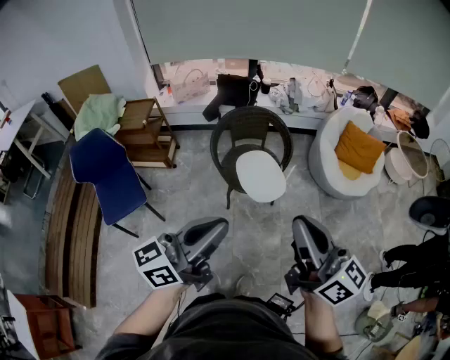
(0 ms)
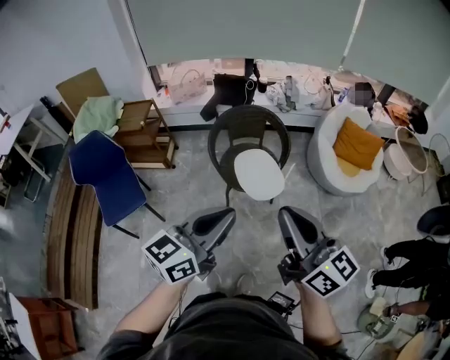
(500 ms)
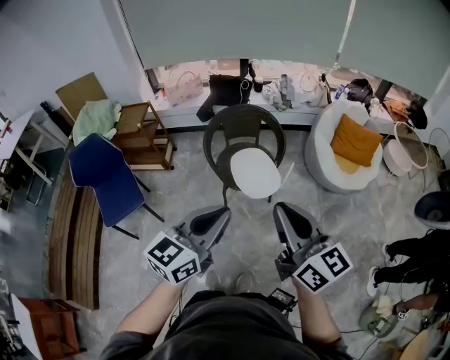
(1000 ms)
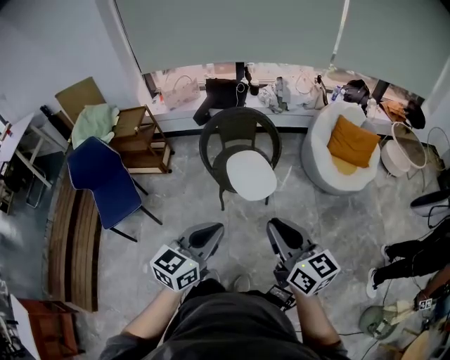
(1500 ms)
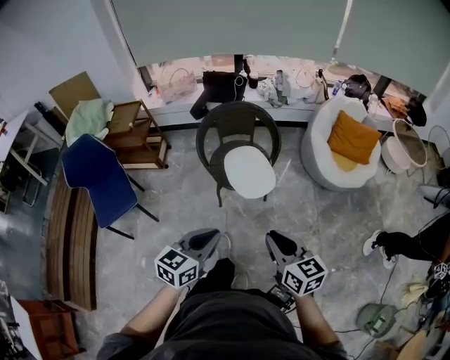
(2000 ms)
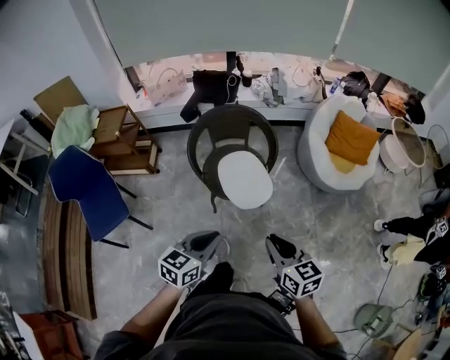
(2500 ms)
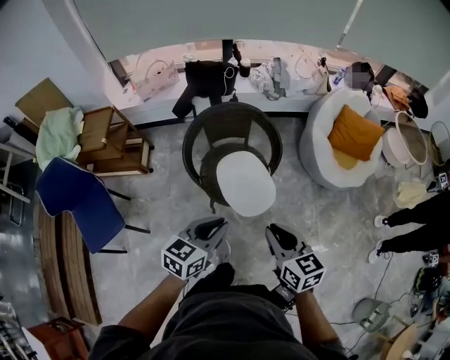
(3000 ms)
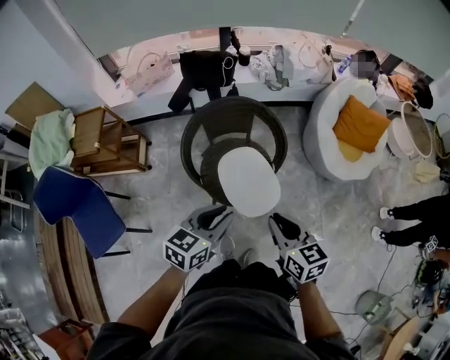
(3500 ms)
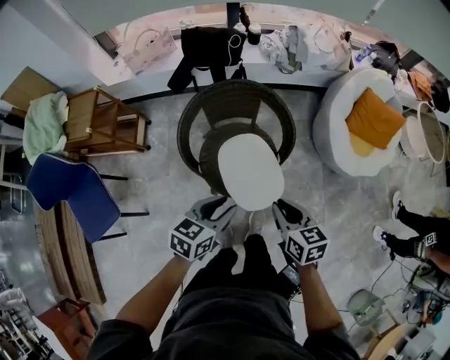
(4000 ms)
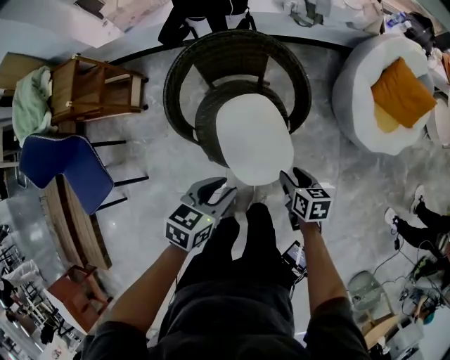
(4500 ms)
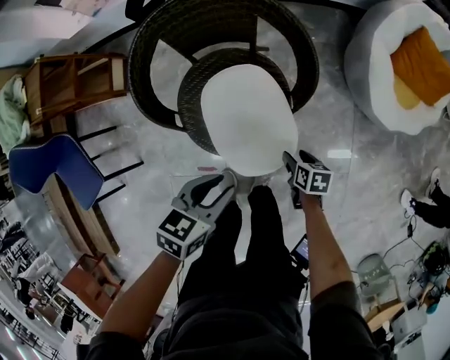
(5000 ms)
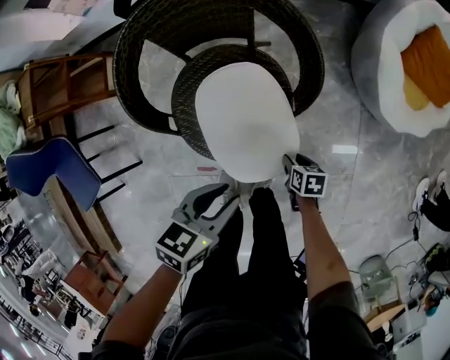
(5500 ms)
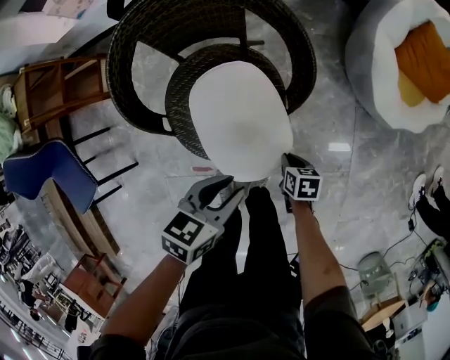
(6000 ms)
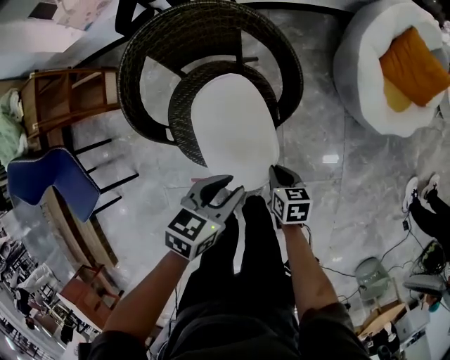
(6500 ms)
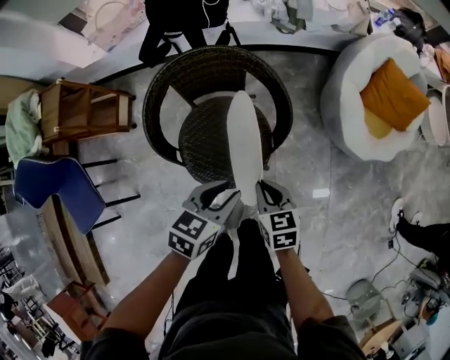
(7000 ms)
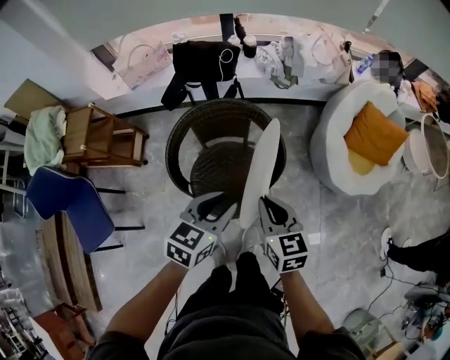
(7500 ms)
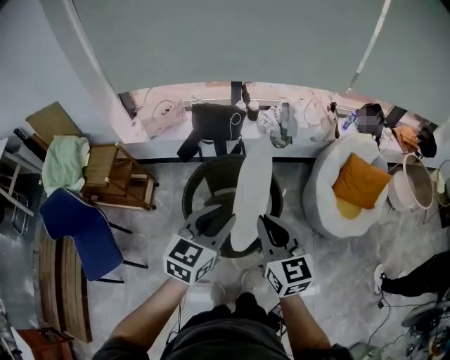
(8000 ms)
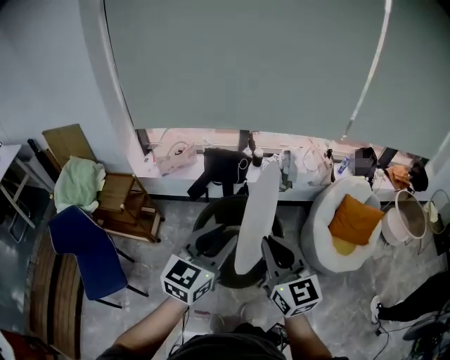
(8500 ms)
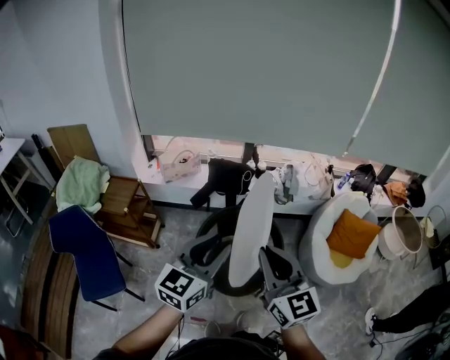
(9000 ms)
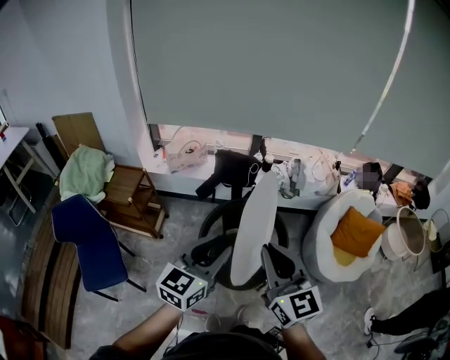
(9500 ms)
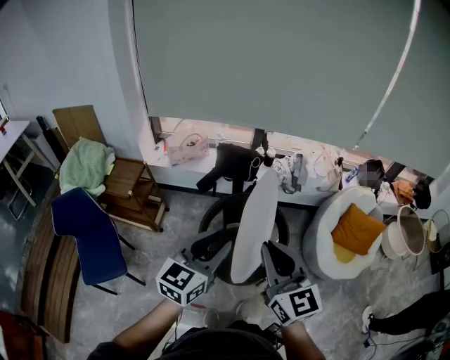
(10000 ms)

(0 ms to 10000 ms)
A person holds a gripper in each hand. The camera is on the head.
0 ms - 2000 ms: Both grippers travel together downward, roughly 20 cm. The right gripper tips its fingers downward by roughly 30 degrees. The left gripper points its fingers approximately 30 degrees further downward.
2000 ms - 4000 ms: The right gripper moves forward and downward, roughly 40 cm. Meanwhile the left gripper heads forward, covering approximately 35 cm, and opens up.
4000 ms - 6000 ms: The left gripper goes approximately 25 cm downward and to the right. The right gripper shifts some 40 cm downward, changes its angle by some 30 degrees, and opens, then closes once more.
6000 ms - 8000 ms: The right gripper shifts some 70 cm upward, and points its fingers about 50 degrees further upward, while the left gripper travels upward by approximately 40 cm, and turns by approximately 40 degrees.
8000 ms - 10000 ms: The right gripper is displaced upward, to the left and backward by about 15 cm; the left gripper travels to the left, upward and backward by roughly 15 cm.

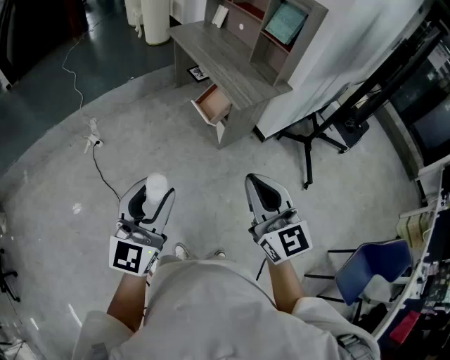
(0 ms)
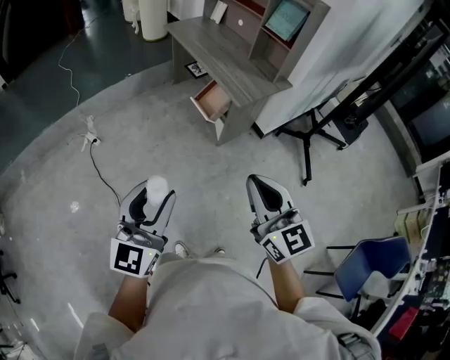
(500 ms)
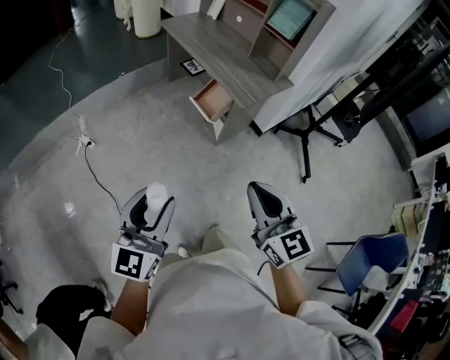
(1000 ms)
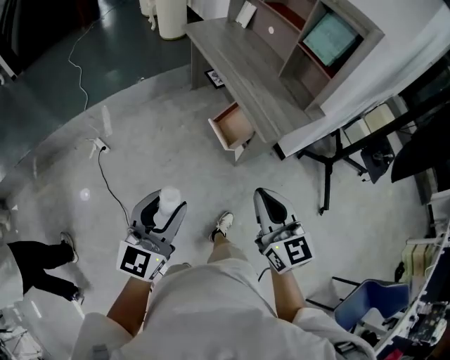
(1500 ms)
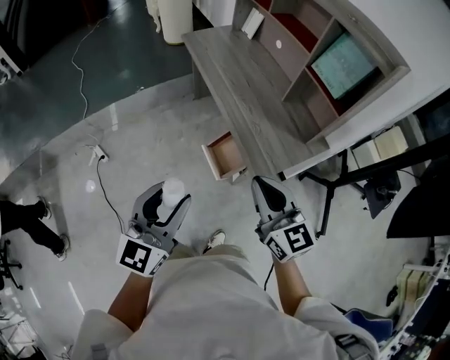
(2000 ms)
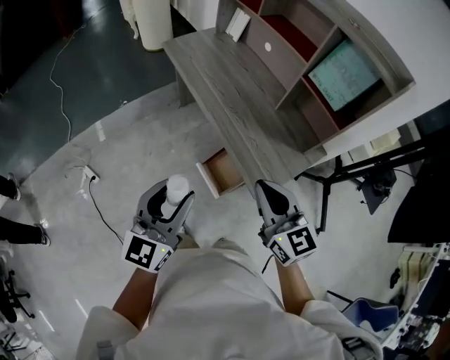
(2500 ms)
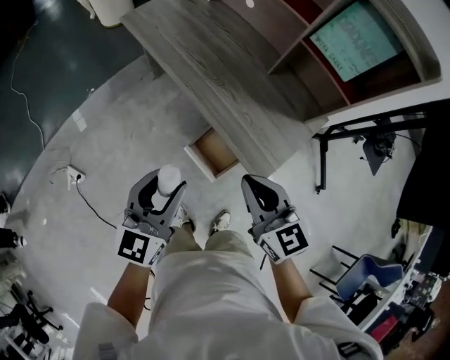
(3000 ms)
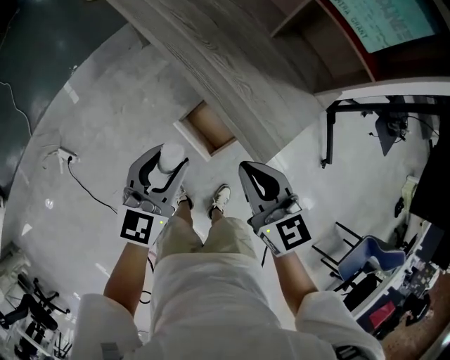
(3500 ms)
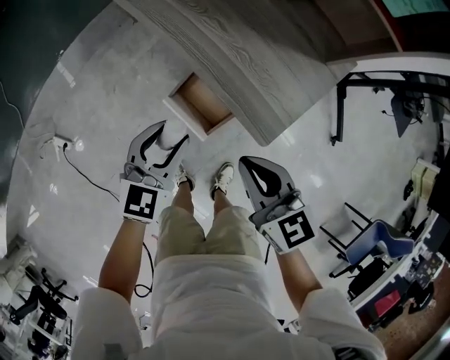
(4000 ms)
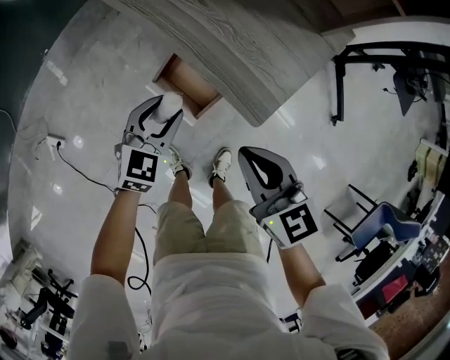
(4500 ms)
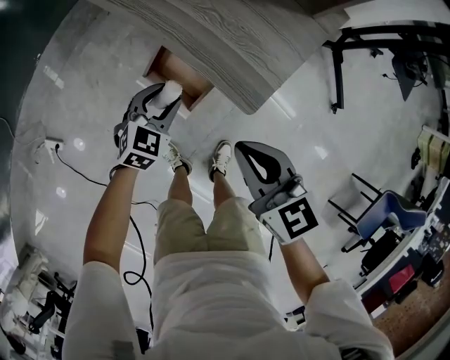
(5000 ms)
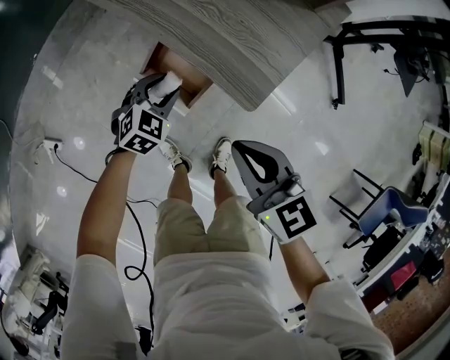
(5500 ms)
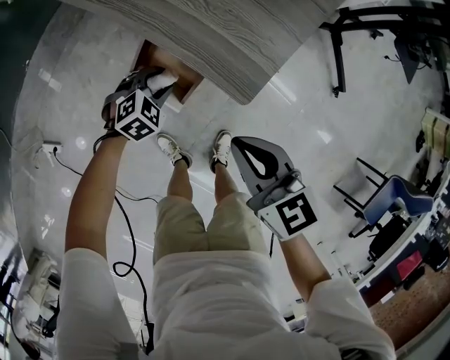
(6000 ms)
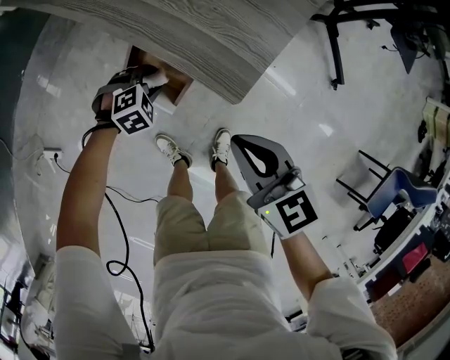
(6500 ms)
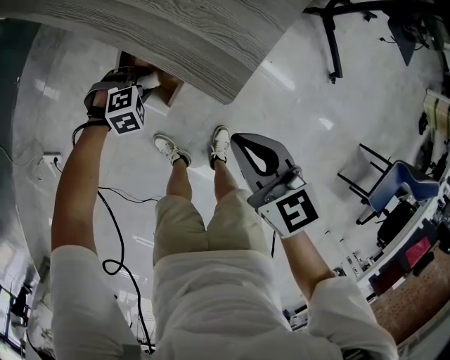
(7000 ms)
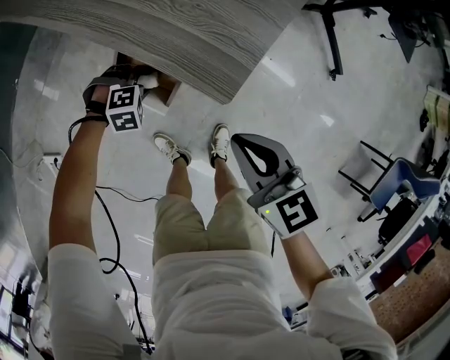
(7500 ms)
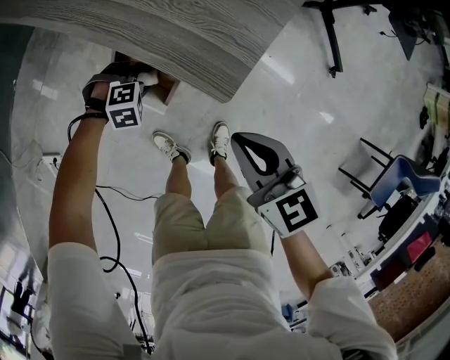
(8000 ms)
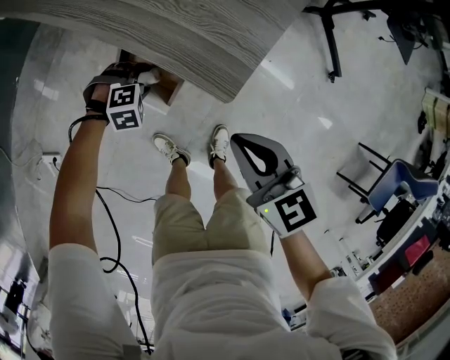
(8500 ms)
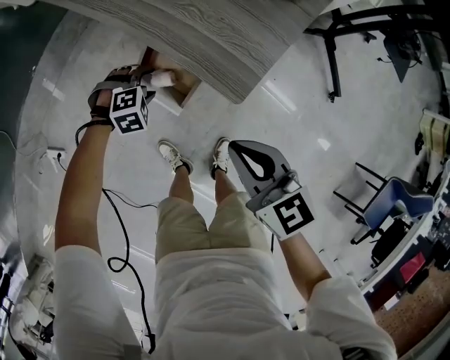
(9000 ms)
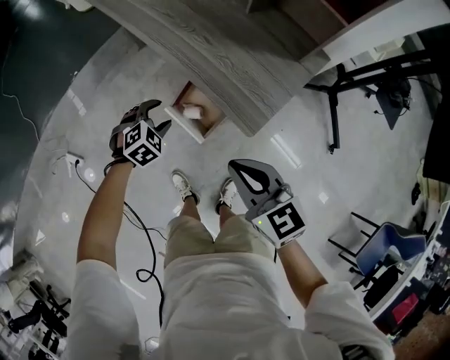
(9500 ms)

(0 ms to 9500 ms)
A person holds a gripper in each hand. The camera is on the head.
0 ms - 2000 ms: The two grippers travel together, forward, approximately 40 cm.
2000 ms - 4000 ms: The two grippers go approximately 30 cm downward and forward. The right gripper turns by roughly 30 degrees; the left gripper swivels about 30 degrees.
4000 ms - 5500 ms: The right gripper moves downward, roughly 5 cm; the left gripper moves downward, about 20 cm, and swivels some 30 degrees.
5500 ms - 7500 ms: The right gripper ends up roughly 5 cm from where it was, while the left gripper moves downward, some 10 cm, and rolls clockwise, seen from behind, by about 40 degrees.
7500 ms - 9500 ms: The two grippers go approximately 15 cm upward. The left gripper changes its angle by some 50 degrees. Meanwhile the right gripper swivels approximately 20 degrees.

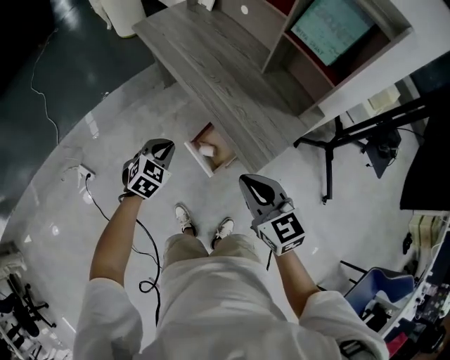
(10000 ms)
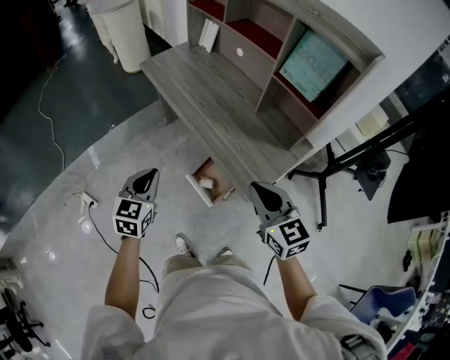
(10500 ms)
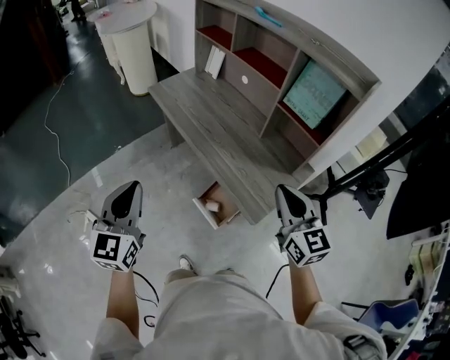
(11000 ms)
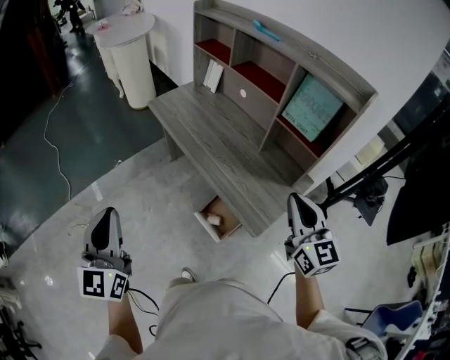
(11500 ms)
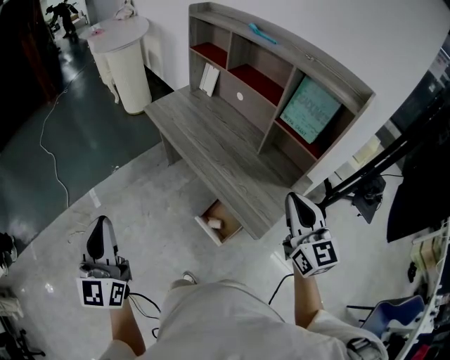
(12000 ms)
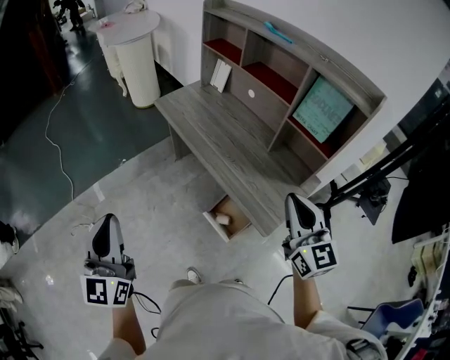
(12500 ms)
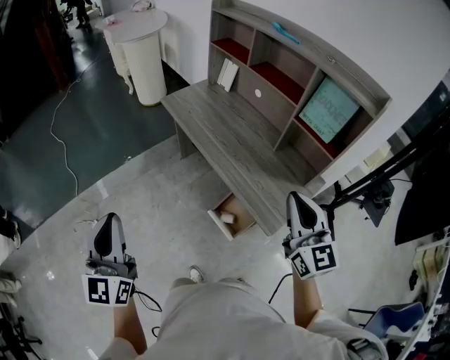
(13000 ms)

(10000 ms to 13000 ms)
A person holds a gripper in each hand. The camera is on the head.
10000 ms - 11500 ms: The right gripper shifts roughly 20 cm upward and to the right, and swivels some 30 degrees, while the left gripper shifts roughly 40 cm upward and to the left, and tips its fingers upward by approximately 50 degrees.
11500 ms - 13000 ms: The two grippers go roughly 5 cm to the left.

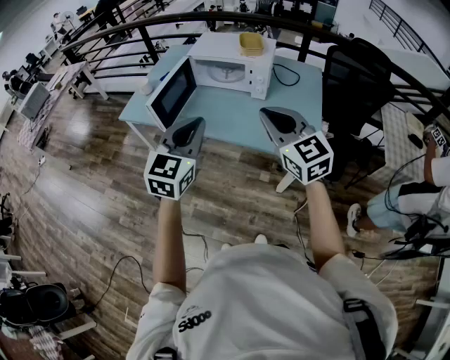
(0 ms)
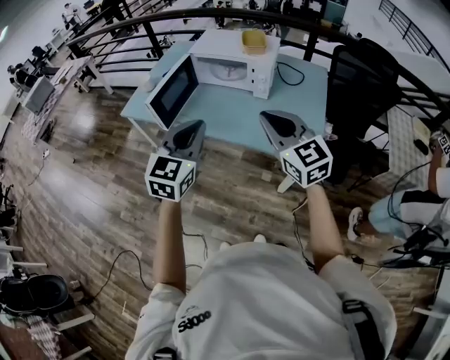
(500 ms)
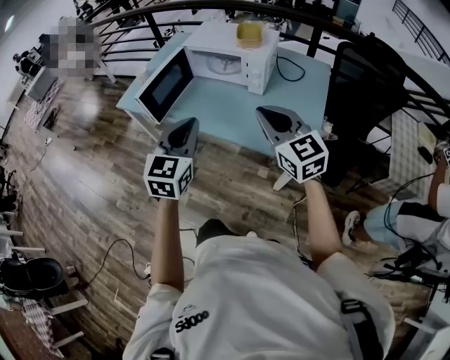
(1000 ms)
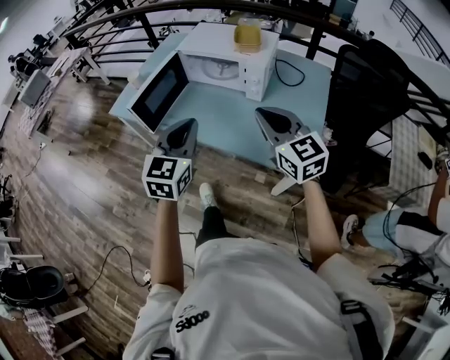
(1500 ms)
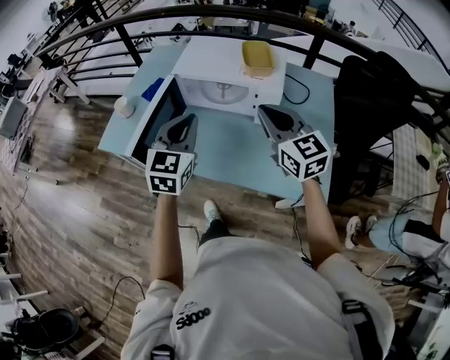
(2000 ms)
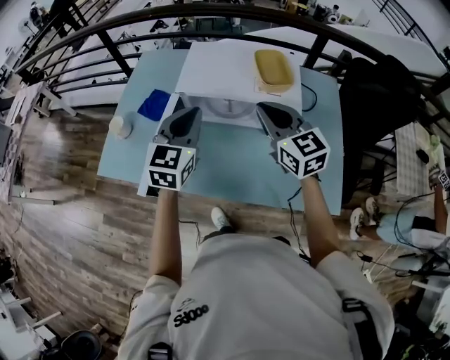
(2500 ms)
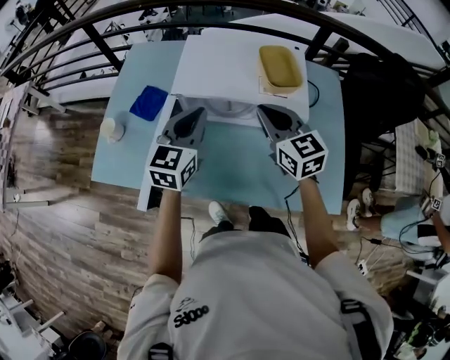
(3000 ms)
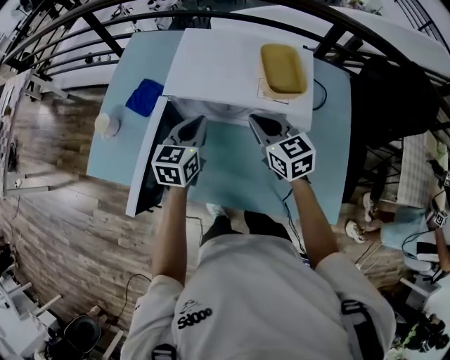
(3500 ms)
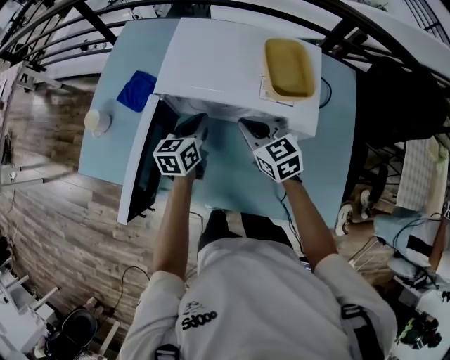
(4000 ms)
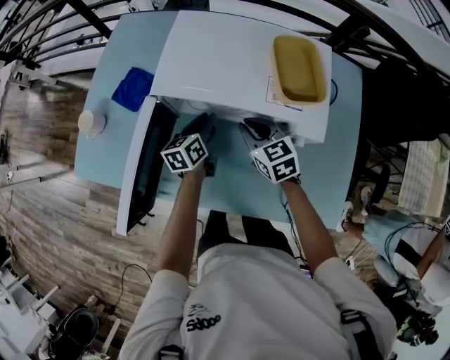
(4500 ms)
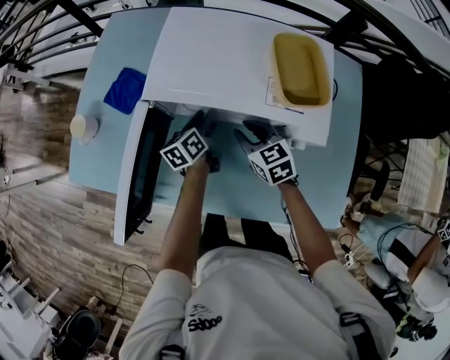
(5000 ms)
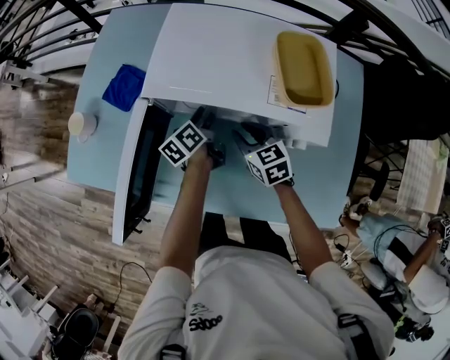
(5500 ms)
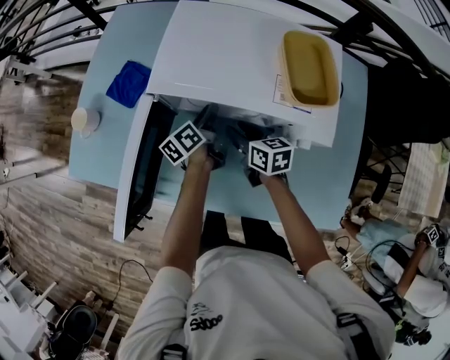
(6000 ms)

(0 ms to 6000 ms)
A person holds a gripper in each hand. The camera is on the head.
0 ms - 2000 ms: The two grippers go approximately 30 cm forward.
2000 ms - 4000 ms: Both grippers travel together forward and downward, some 30 cm. The left gripper rotates about 40 degrees, while the right gripper rotates roughly 20 degrees.
4000 ms - 6000 ms: The right gripper moves downward, roughly 10 cm, turns by about 30 degrees, and opens; the left gripper heads downward and forward, covering some 10 cm, swivels about 40 degrees, and opens its fingers.
